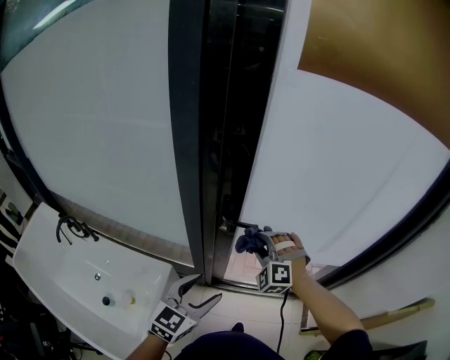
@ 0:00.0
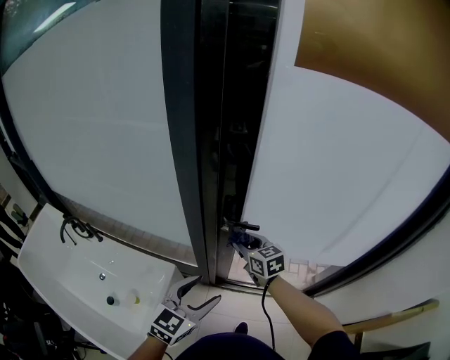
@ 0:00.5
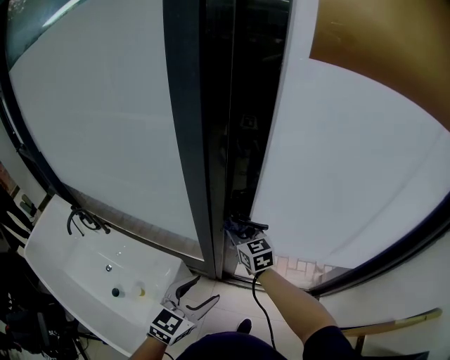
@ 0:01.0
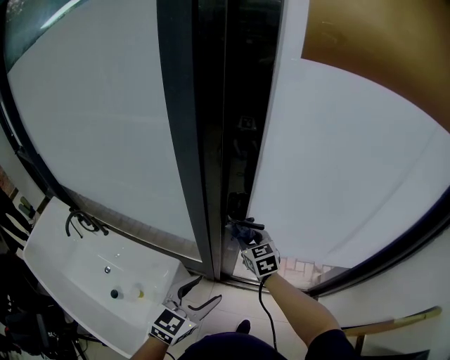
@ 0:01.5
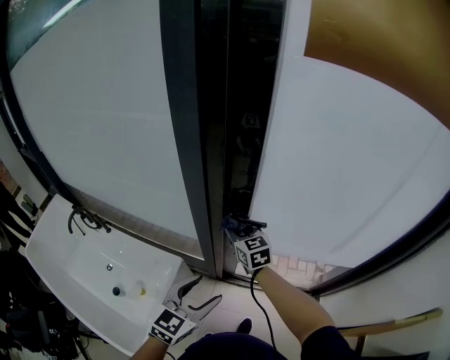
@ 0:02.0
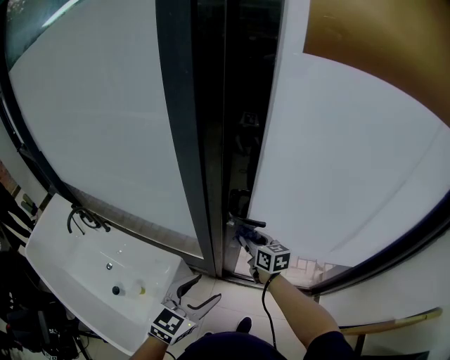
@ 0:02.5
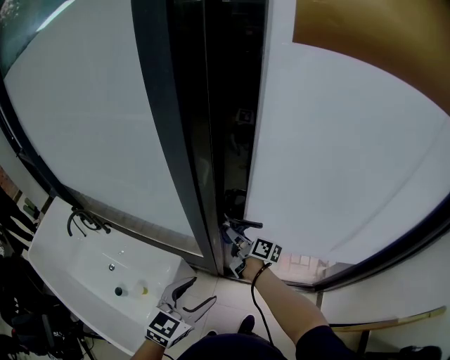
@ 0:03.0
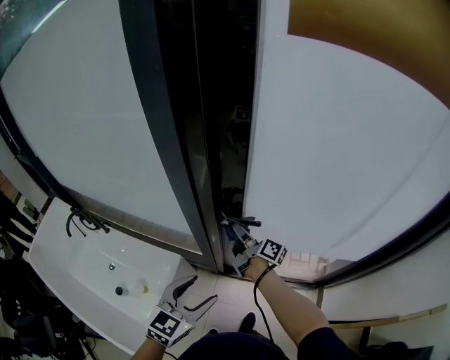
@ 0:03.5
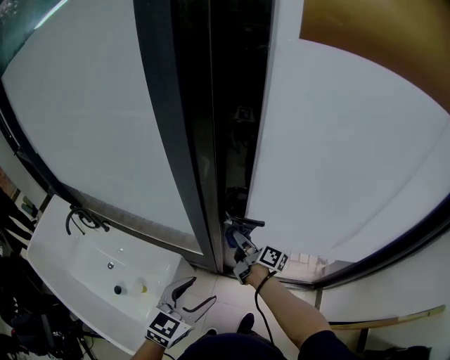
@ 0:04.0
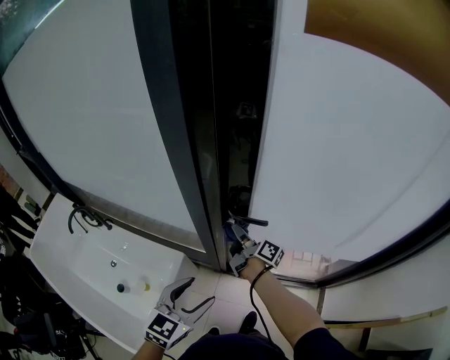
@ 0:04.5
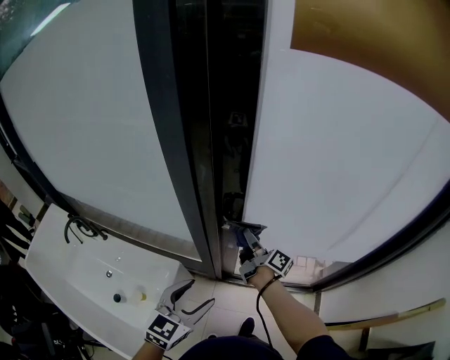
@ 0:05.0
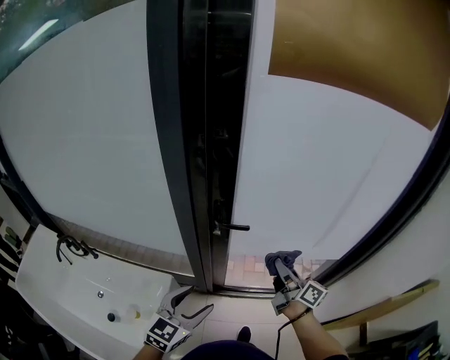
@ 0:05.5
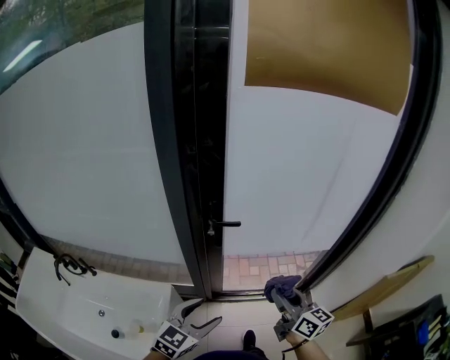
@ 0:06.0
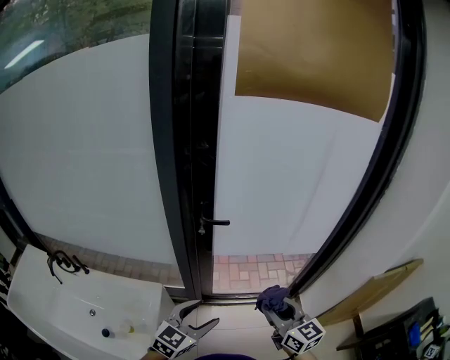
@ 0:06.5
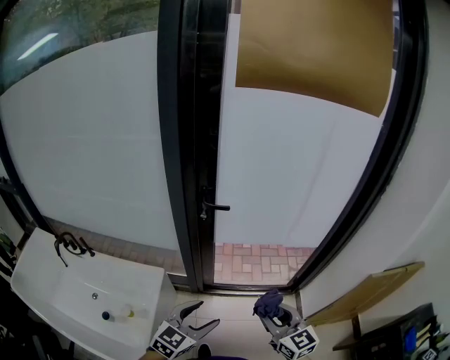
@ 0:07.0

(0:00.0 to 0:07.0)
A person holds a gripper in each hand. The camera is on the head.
0:00.0 - 0:02.0: The right gripper swings left and right, some 10 cm each way, with 2 reversals, and twists about 70 degrees clockwise, seen from behind.
0:02.0 - 0:03.5: The right gripper travels downward by approximately 5 cm, and rolls clockwise, seen from behind, by some 70 degrees.
0:03.5 - 0:05.0: There are only small adjustments of the grippers.
0:05.0 - 0:07.0: The right gripper shifts about 40 cm backward, and twists about 70 degrees counterclockwise, seen from behind. The left gripper shifts approximately 20 cm backward and to the right.

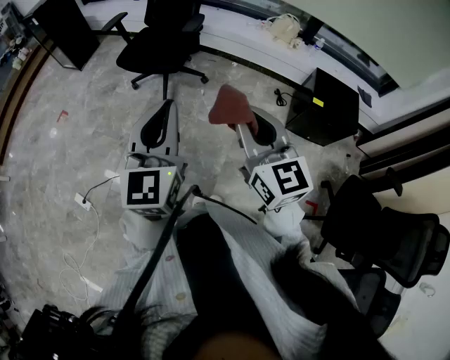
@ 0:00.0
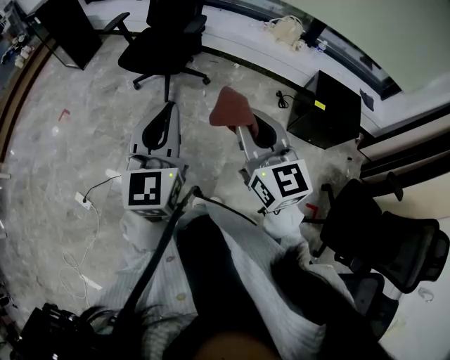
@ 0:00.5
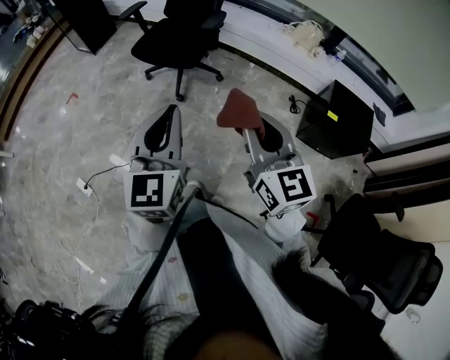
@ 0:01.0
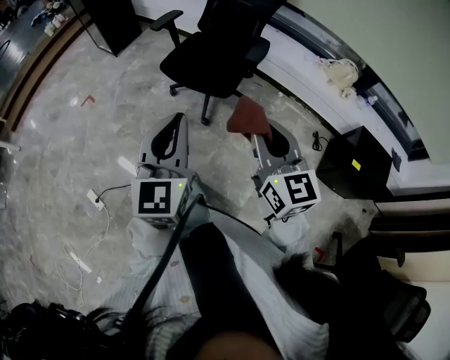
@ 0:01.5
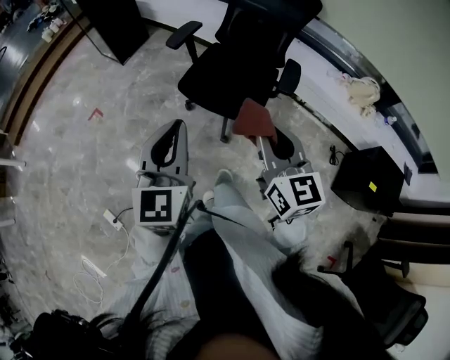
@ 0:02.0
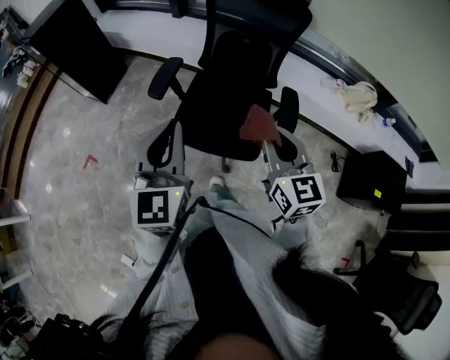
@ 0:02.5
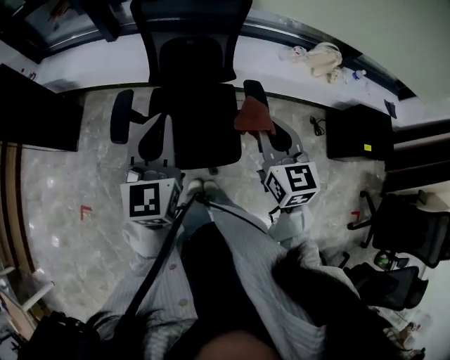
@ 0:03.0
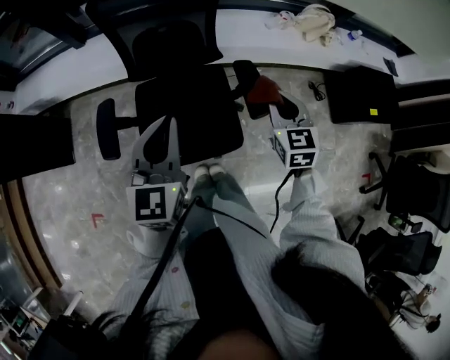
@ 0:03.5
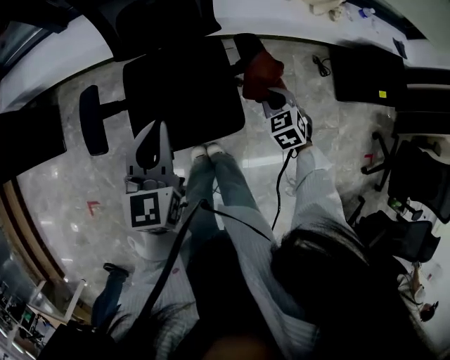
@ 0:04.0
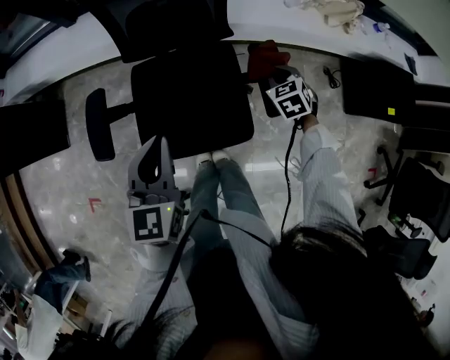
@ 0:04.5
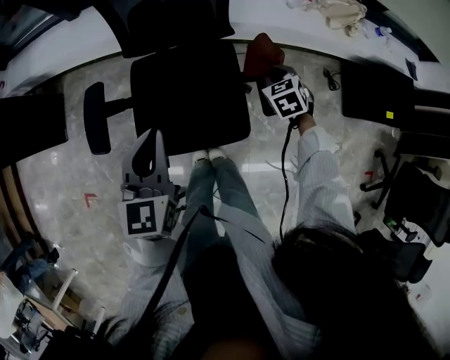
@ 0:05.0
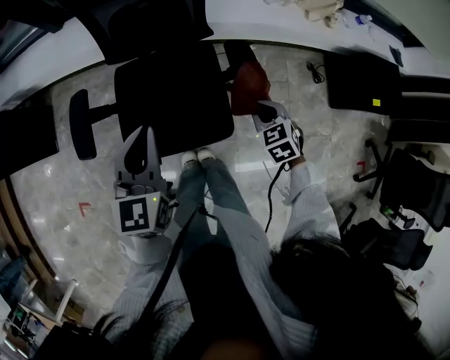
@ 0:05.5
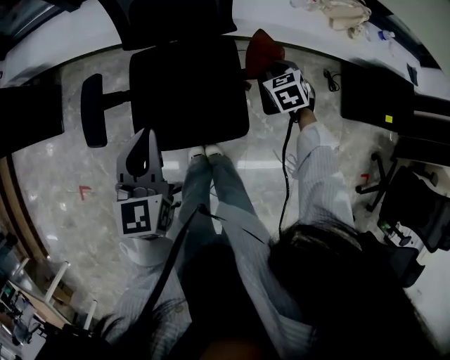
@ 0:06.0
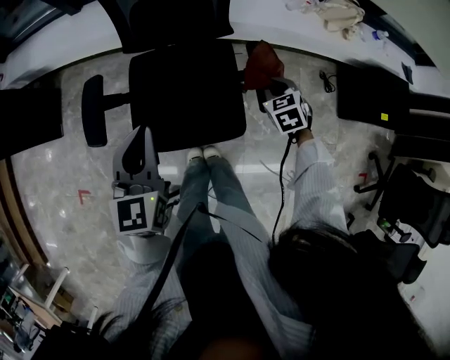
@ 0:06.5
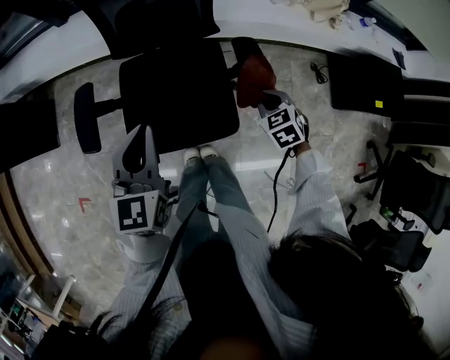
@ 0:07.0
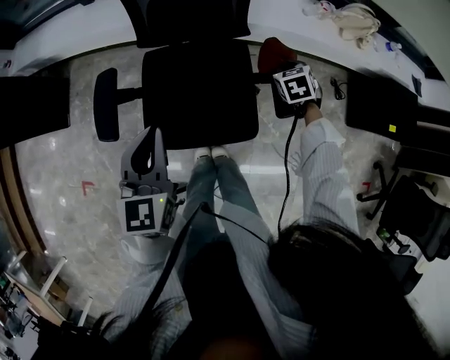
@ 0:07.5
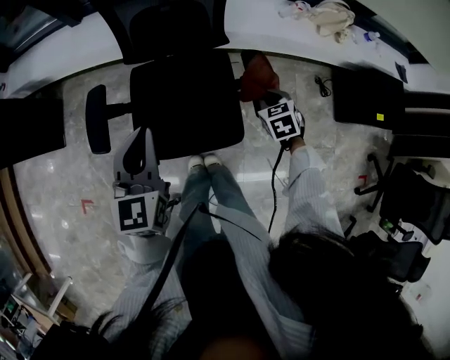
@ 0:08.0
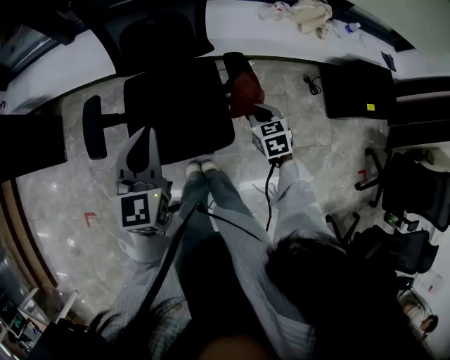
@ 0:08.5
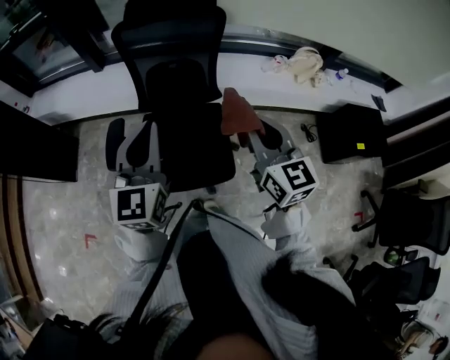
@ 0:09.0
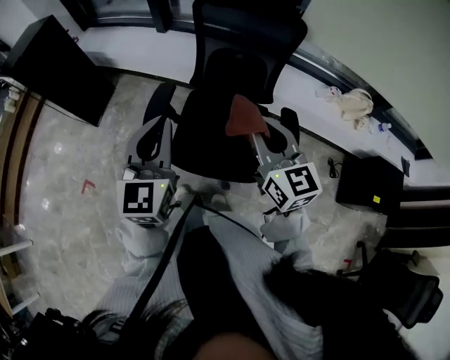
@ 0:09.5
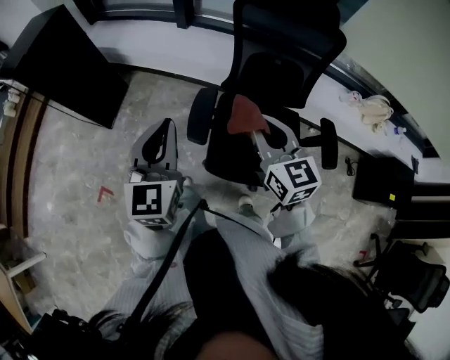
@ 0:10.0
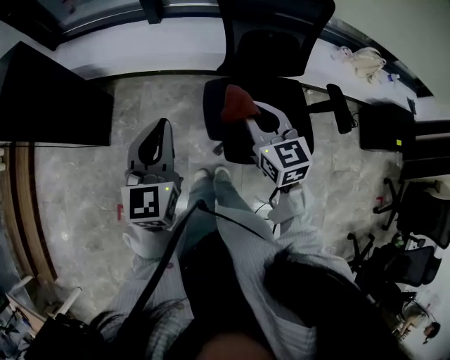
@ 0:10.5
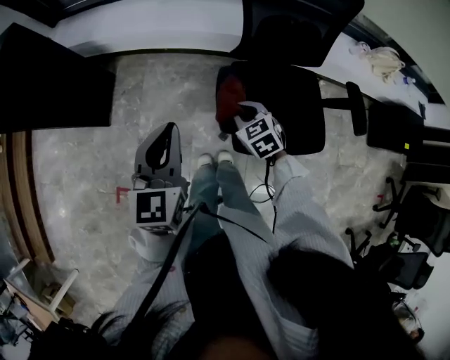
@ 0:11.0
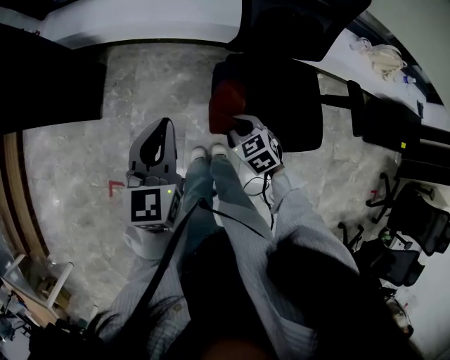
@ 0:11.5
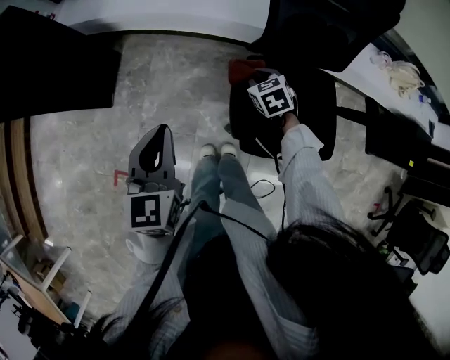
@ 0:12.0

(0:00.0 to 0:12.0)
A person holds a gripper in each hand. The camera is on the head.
0:00.0 - 0:02.0: The pair of grippers is taken forward and to the left, some 50 cm.
0:02.0 - 0:04.0: The left gripper changes place by roughly 50 cm, and changes its angle by approximately 40 degrees, while the right gripper shifts by some 50 cm, and tips its fingers downward by approximately 50 degrees.
0:04.0 - 0:06.0: The right gripper moves forward and backward over roughly 15 cm, changing direction 2 times.
0:06.0 - 0:08.0: The right gripper goes forward and backward, roughly 15 cm each way, reversing 2 times.
0:08.0 - 0:10.0: The left gripper heads to the left, covering roughly 35 cm; the right gripper goes about 50 cm to the left and upward, and angles its fingers upward, by about 40 degrees.
0:10.0 - 0:12.0: The right gripper is displaced downward and forward by some 40 cm, and points its fingers roughly 40 degrees further downward. The left gripper travels downward, to the left and forward by roughly 25 cm, and swivels approximately 20 degrees.

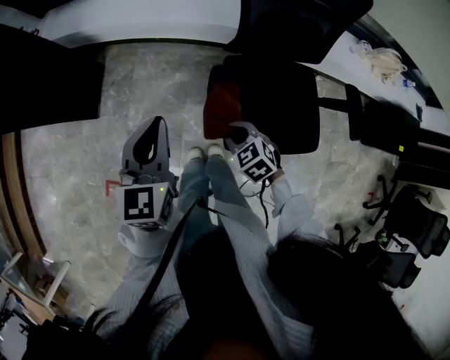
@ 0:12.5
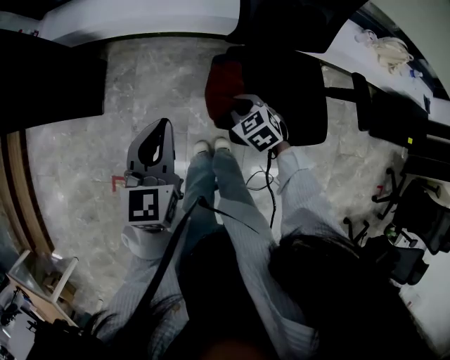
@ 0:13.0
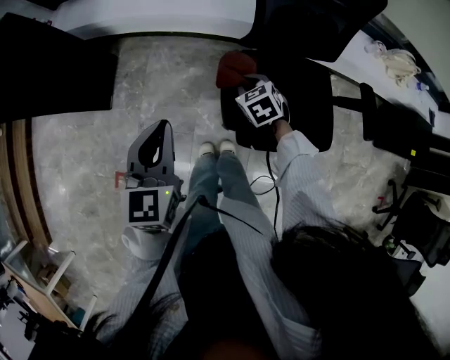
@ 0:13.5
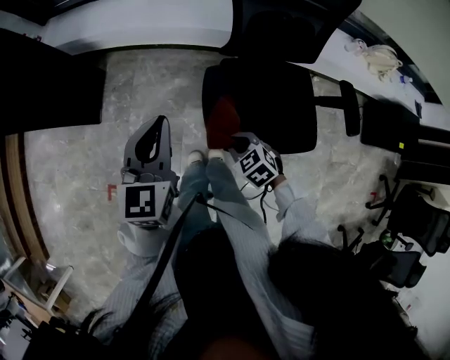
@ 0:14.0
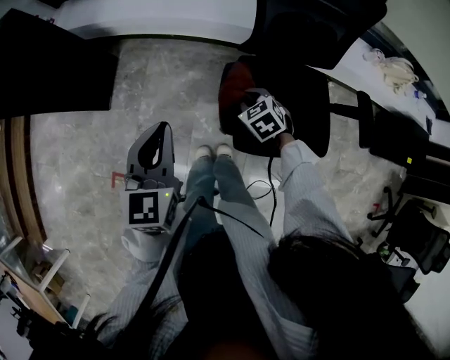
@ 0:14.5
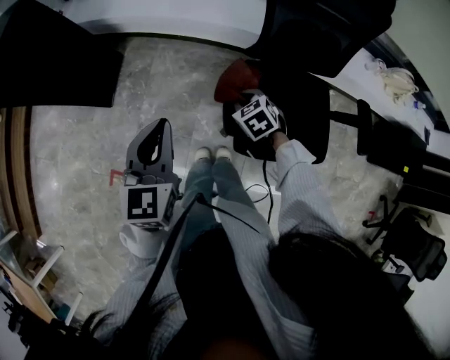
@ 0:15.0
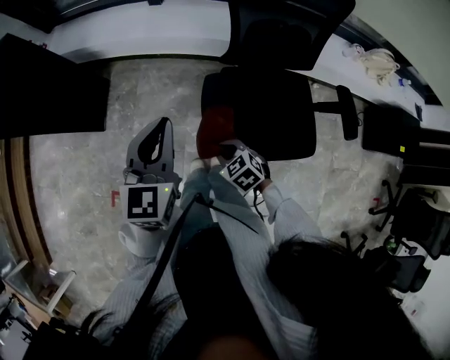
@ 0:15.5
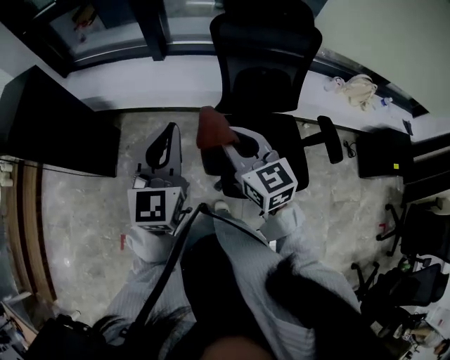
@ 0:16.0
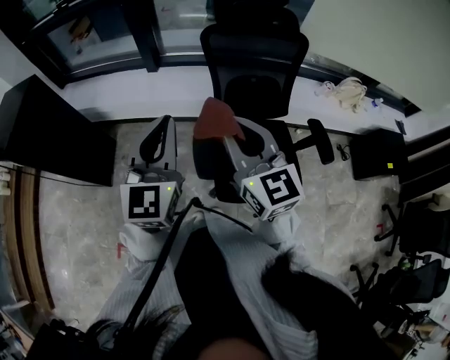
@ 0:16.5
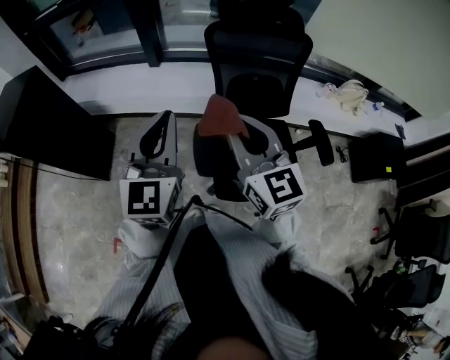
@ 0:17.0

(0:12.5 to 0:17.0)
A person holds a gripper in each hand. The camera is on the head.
0:12.5 - 0:14.5: The right gripper moves forward and backward over roughly 15 cm, changing direction 2 times.
0:14.5 - 0:17.0: The right gripper travels upward by about 40 cm, and tips its fingers upward by about 60 degrees. The left gripper moves upward and to the right, roughly 25 cm, and turns by roughly 30 degrees.

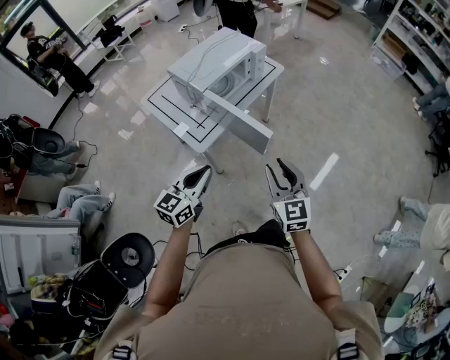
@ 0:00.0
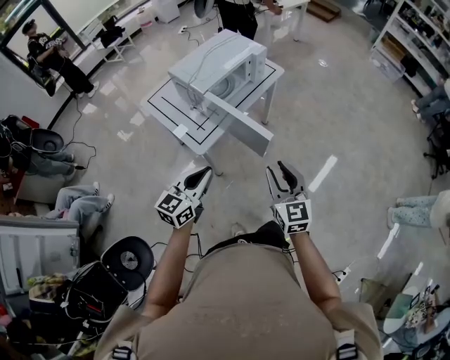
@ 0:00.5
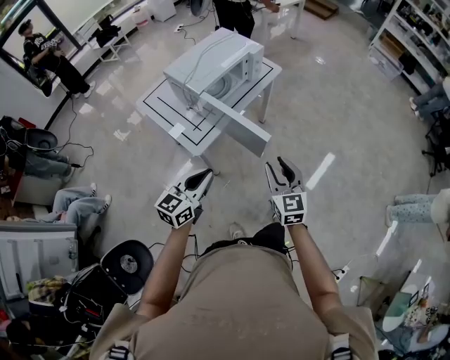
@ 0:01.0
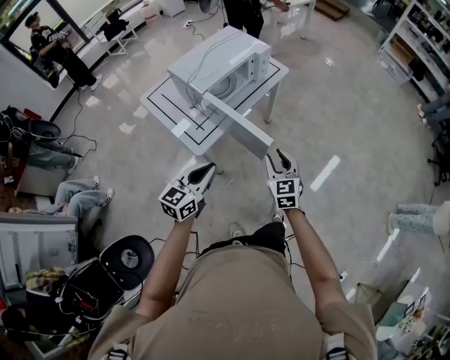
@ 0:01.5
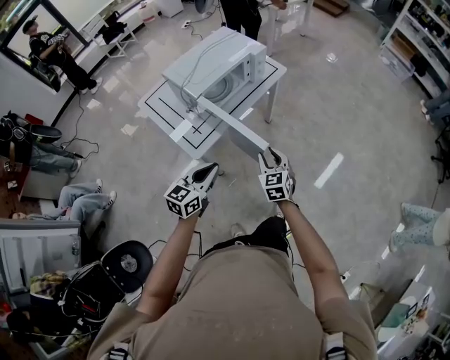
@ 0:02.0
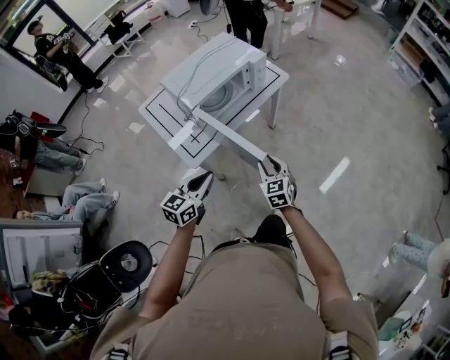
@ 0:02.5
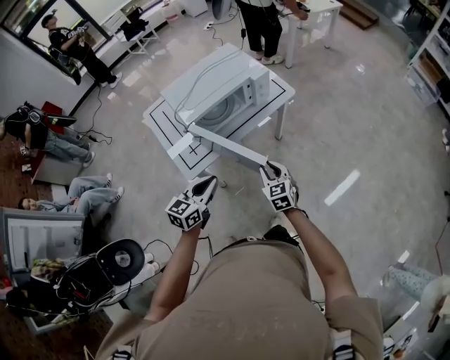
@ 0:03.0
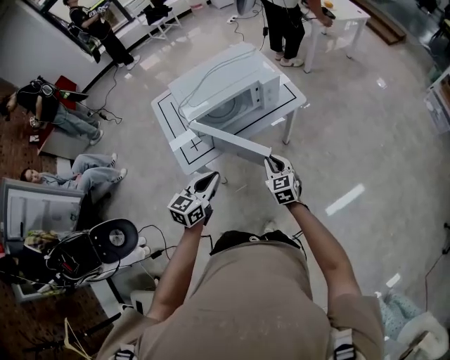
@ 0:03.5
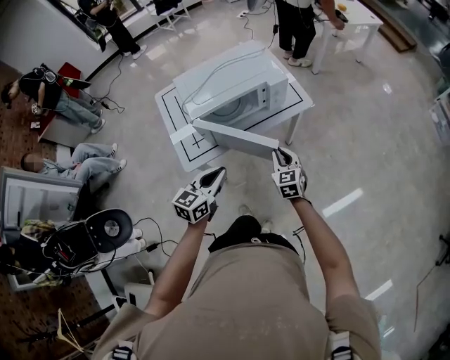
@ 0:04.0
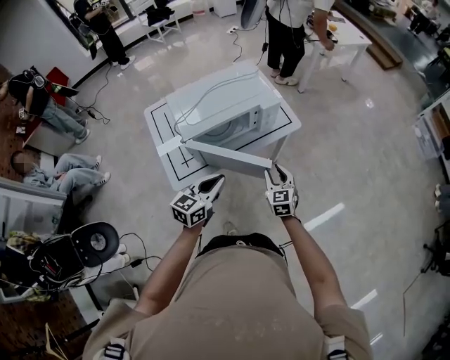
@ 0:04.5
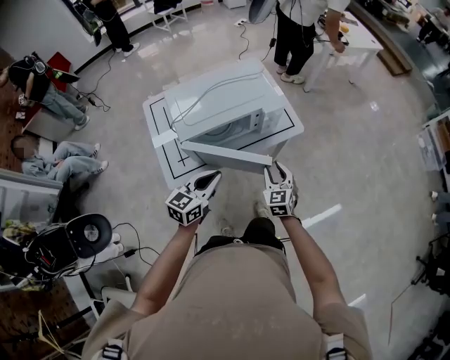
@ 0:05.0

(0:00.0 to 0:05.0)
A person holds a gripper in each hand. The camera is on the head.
0:00.0 - 0:02.5: The left gripper moves forward and downward, about 15 cm, while the right gripper shifts some 25 cm forward and downward.
0:02.5 - 0:05.0: The left gripper shifts some 25 cm forward and to the right, while the right gripper heads forward, covering about 25 cm.
